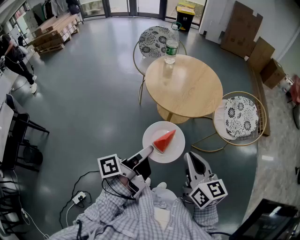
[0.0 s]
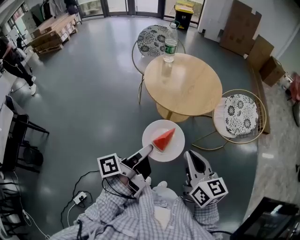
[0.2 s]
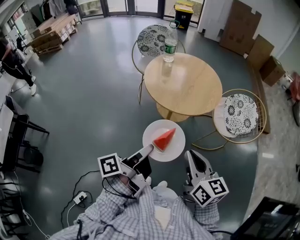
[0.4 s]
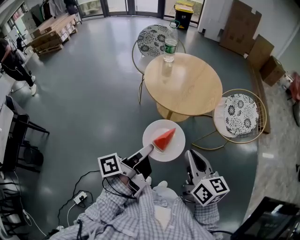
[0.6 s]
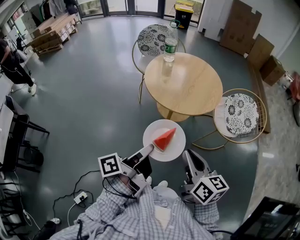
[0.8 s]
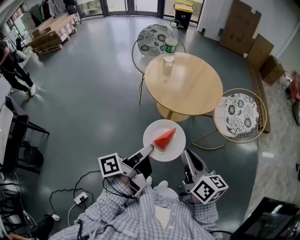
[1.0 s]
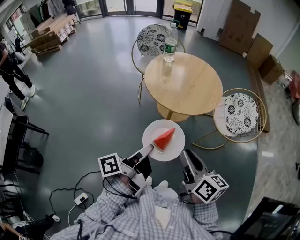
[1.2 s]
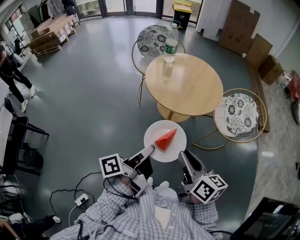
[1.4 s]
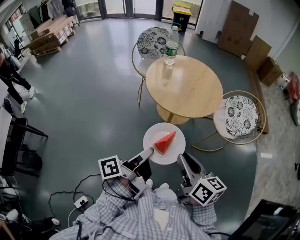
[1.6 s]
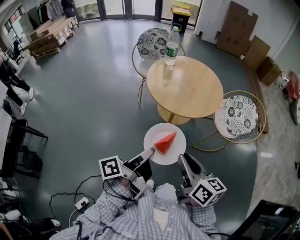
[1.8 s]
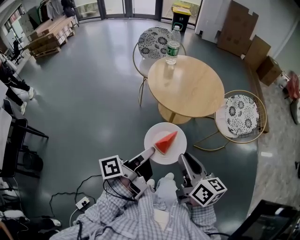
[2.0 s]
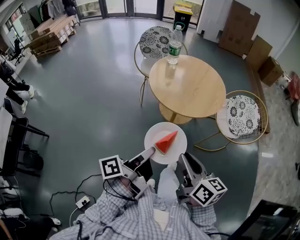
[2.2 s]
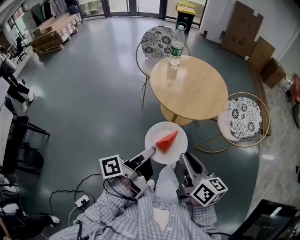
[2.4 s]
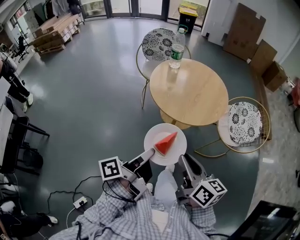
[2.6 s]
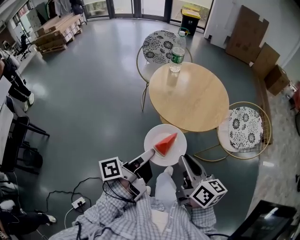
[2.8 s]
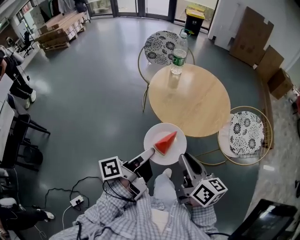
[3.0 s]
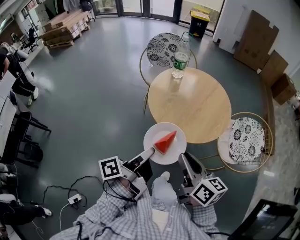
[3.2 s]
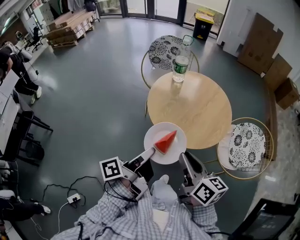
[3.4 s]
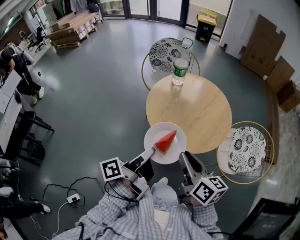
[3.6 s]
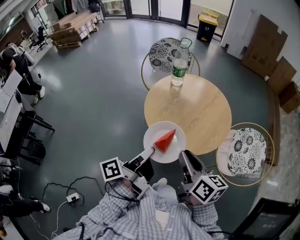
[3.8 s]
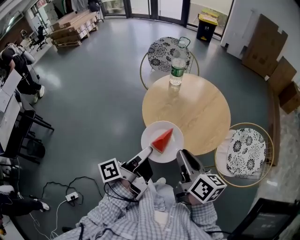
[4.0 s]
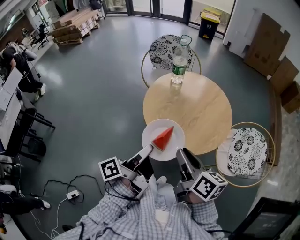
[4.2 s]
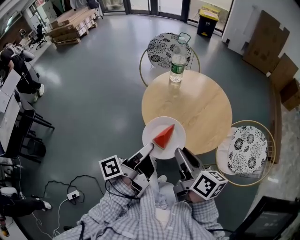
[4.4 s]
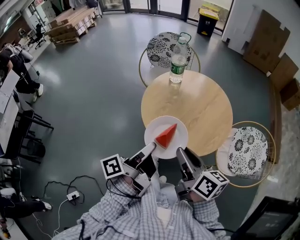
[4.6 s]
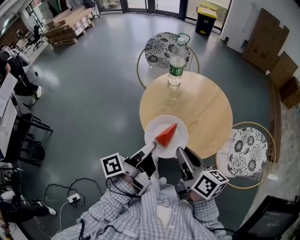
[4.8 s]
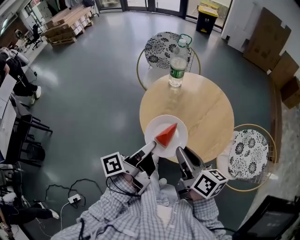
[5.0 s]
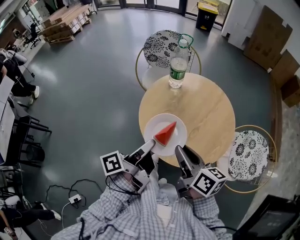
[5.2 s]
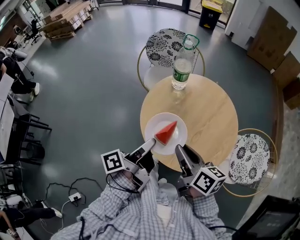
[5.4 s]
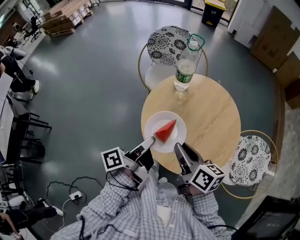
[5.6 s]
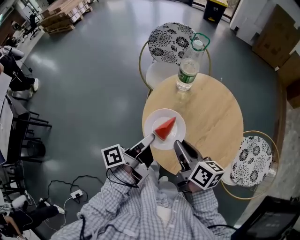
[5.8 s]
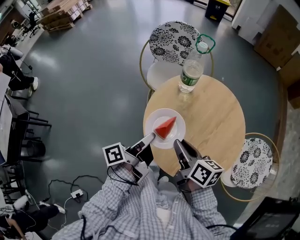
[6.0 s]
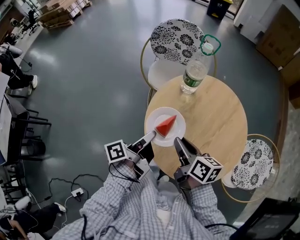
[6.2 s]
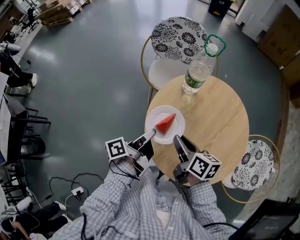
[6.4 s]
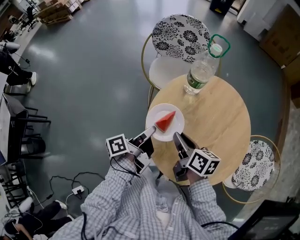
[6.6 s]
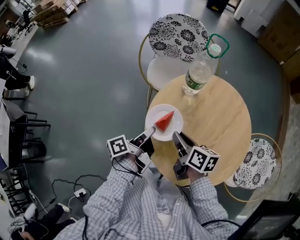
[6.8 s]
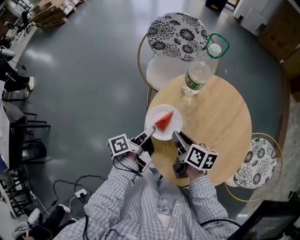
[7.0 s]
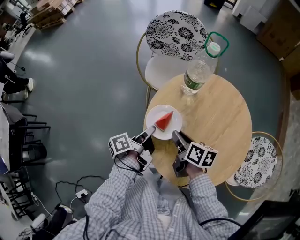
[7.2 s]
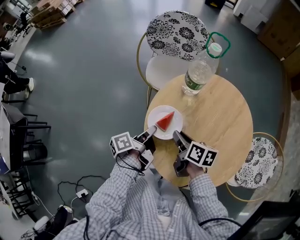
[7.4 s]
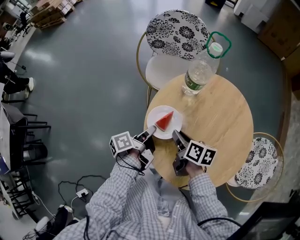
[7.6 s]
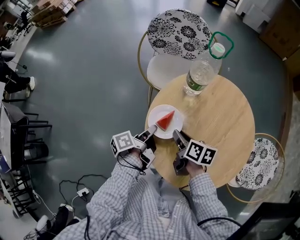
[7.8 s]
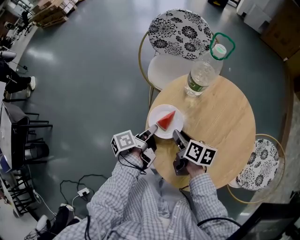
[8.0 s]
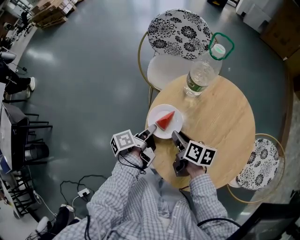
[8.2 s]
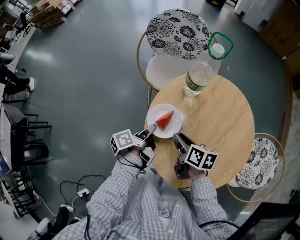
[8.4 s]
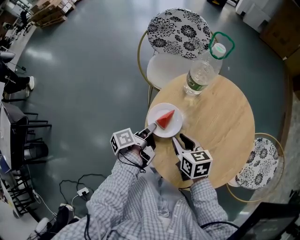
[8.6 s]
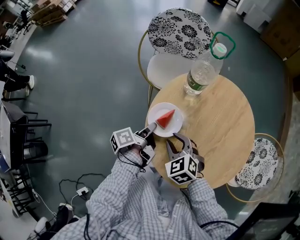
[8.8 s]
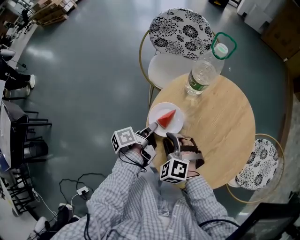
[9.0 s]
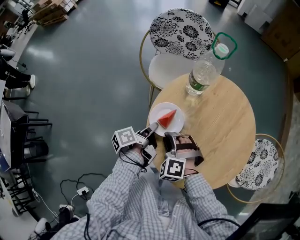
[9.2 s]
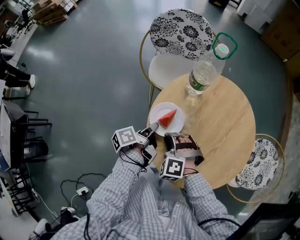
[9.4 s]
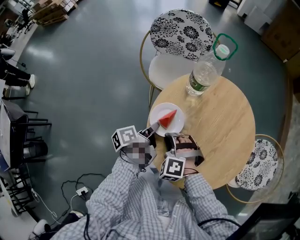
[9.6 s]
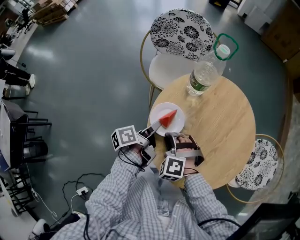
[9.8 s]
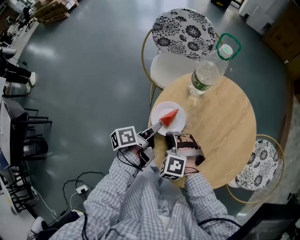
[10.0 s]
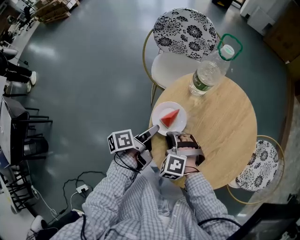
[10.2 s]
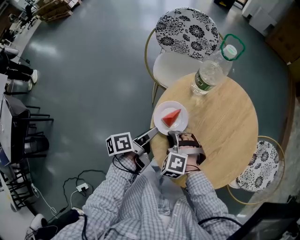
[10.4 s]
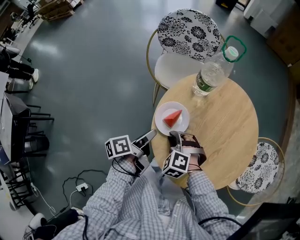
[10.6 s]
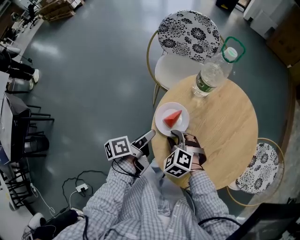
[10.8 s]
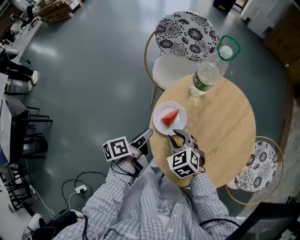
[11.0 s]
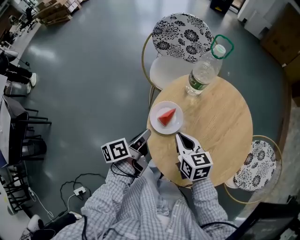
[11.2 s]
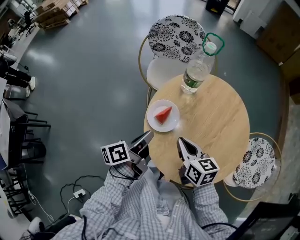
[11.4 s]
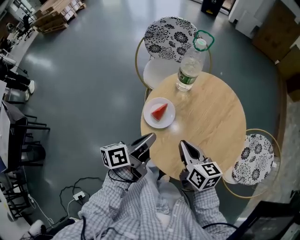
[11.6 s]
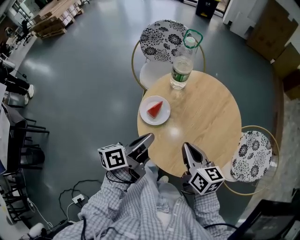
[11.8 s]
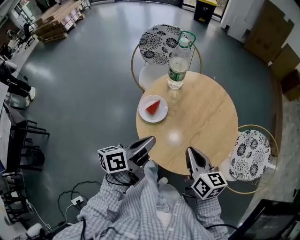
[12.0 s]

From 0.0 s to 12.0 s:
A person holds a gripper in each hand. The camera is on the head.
From 1.6 s to 3.0 s: The right gripper shifts by some 10 cm.
From 3.0 s to 4.4 s: The right gripper moves about 15 cm.
From 4.4 s to 6.0 s: The right gripper ends up some 25 cm from where it was.
From 6.0 s to 7.6 s: The right gripper is displaced downward by approximately 15 cm.
From 7.6 s to 9.0 s: The right gripper ends up some 10 cm from where it was, and rolls counterclockwise, seen from behind, by about 100 degrees.
From 10.4 s to 12.0 s: The right gripper moves some 25 cm, and twists about 90 degrees clockwise, seen from behind.

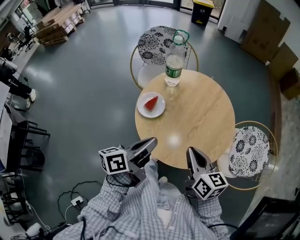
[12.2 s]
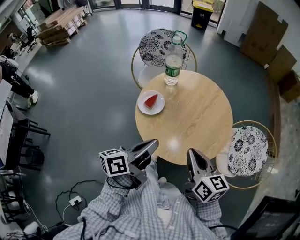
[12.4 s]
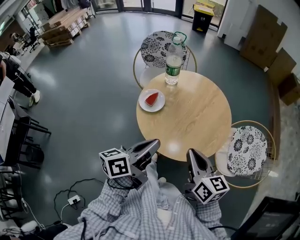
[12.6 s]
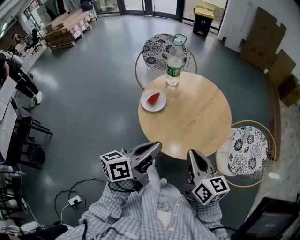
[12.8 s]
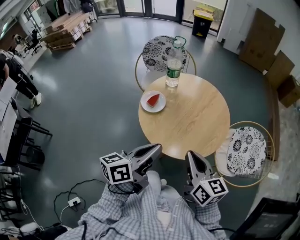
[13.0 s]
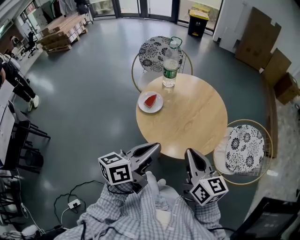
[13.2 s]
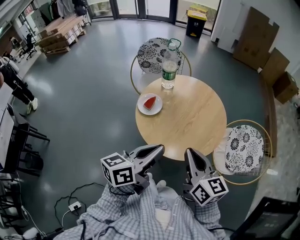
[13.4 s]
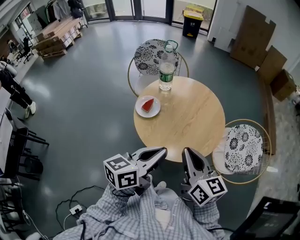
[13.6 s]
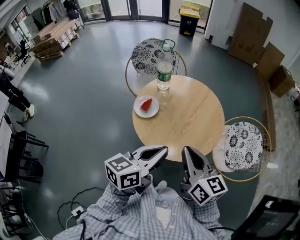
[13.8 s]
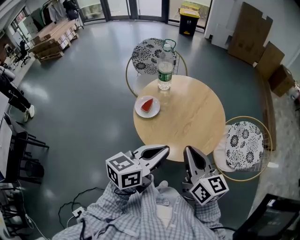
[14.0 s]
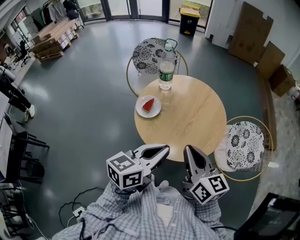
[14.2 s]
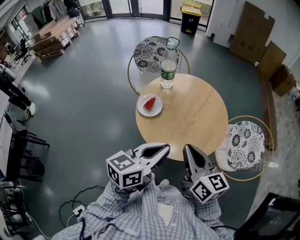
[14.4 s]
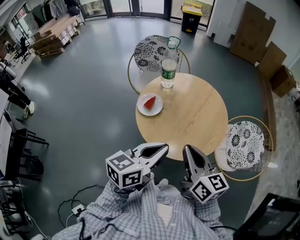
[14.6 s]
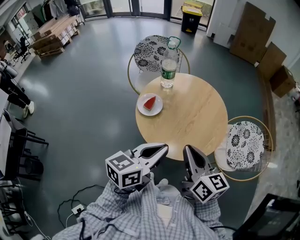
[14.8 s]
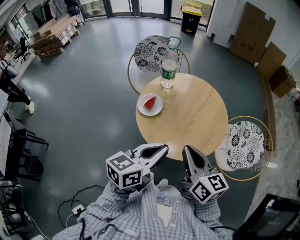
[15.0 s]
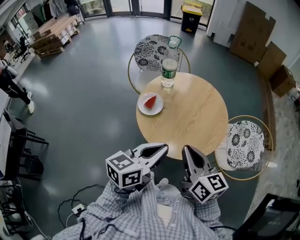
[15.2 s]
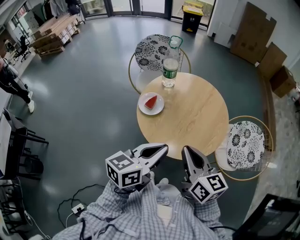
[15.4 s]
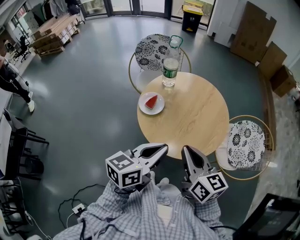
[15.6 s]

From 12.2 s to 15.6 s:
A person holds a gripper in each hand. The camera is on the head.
From 12.2 s to 13.8 s: The right gripper moves upward, roughly 10 cm.

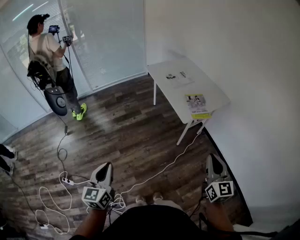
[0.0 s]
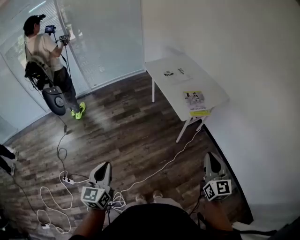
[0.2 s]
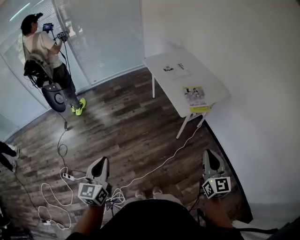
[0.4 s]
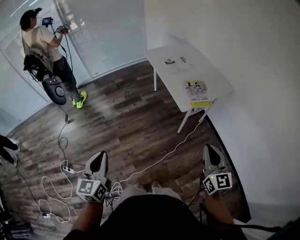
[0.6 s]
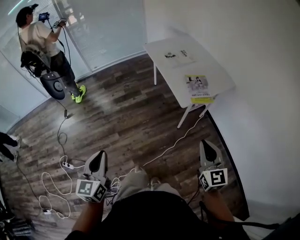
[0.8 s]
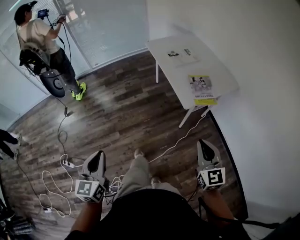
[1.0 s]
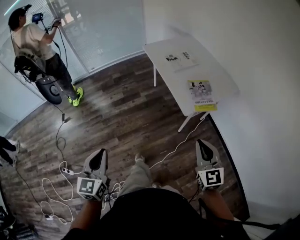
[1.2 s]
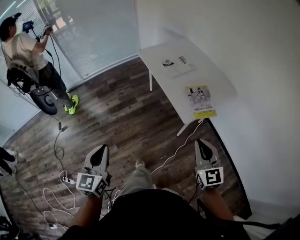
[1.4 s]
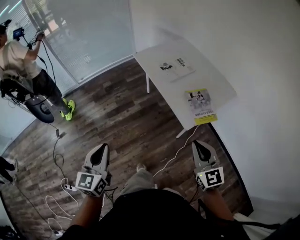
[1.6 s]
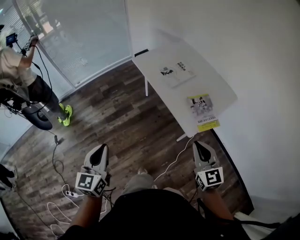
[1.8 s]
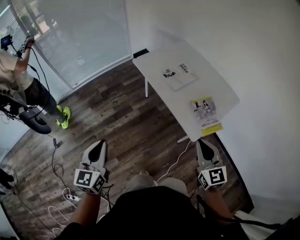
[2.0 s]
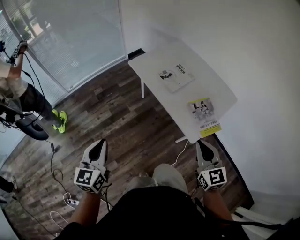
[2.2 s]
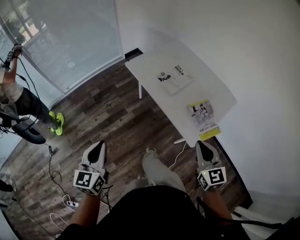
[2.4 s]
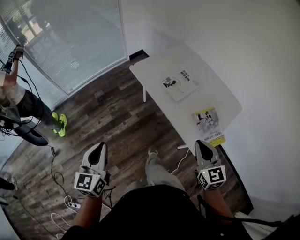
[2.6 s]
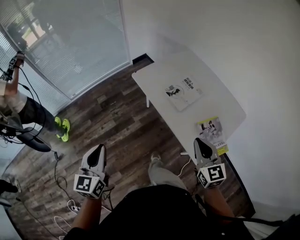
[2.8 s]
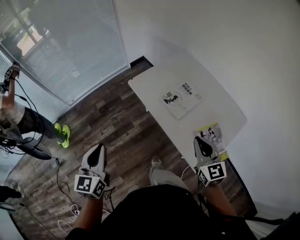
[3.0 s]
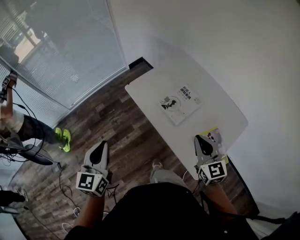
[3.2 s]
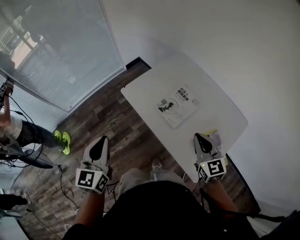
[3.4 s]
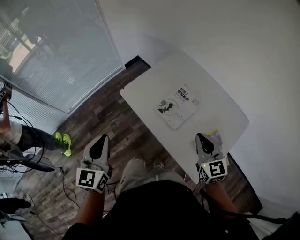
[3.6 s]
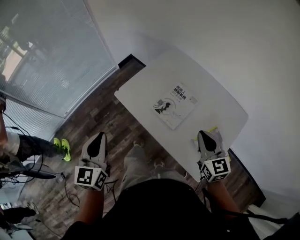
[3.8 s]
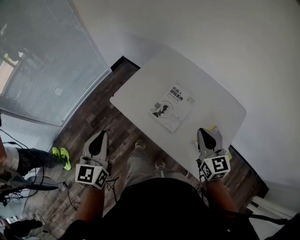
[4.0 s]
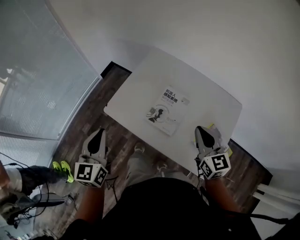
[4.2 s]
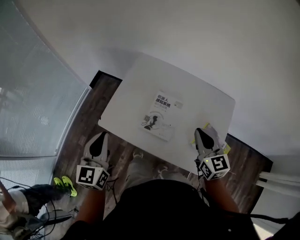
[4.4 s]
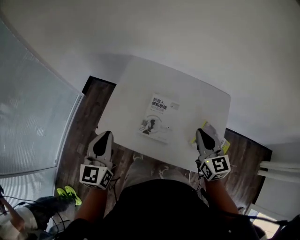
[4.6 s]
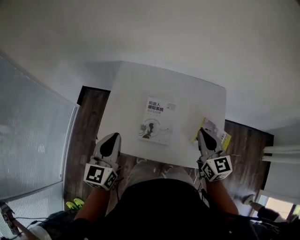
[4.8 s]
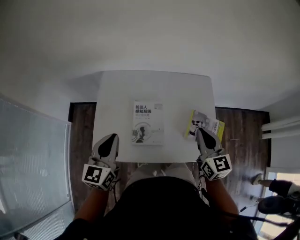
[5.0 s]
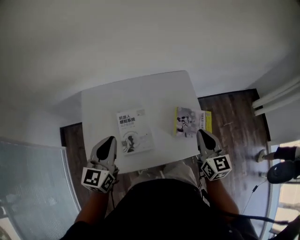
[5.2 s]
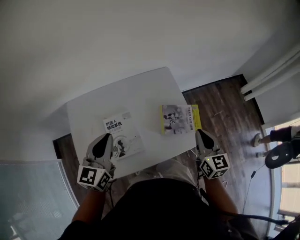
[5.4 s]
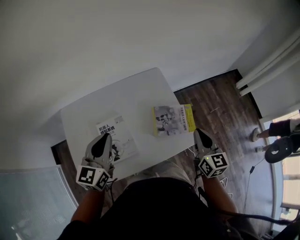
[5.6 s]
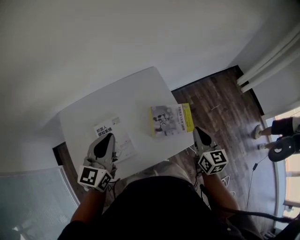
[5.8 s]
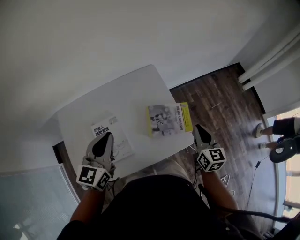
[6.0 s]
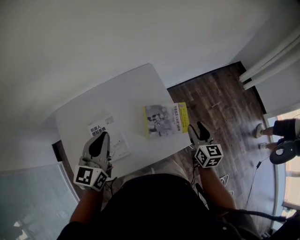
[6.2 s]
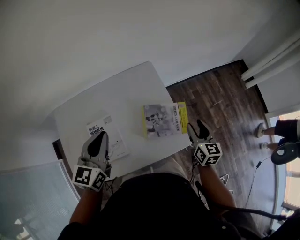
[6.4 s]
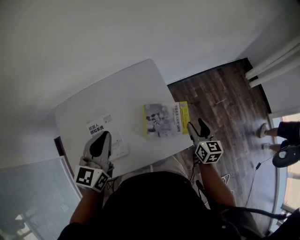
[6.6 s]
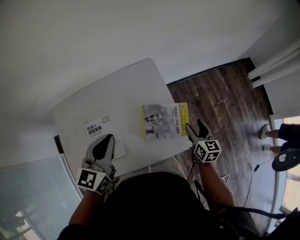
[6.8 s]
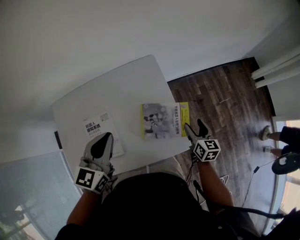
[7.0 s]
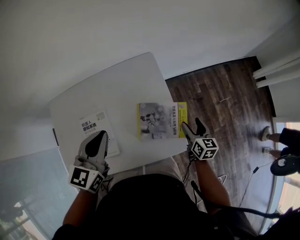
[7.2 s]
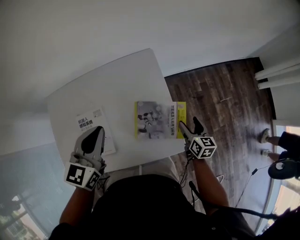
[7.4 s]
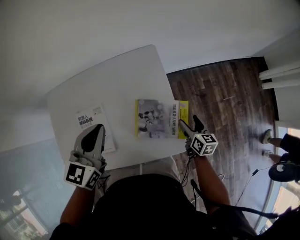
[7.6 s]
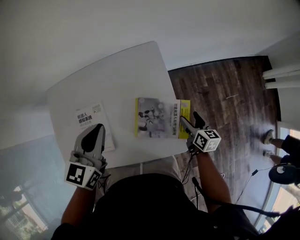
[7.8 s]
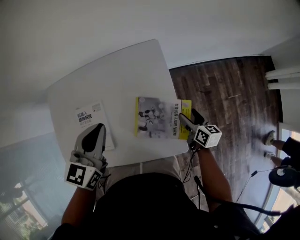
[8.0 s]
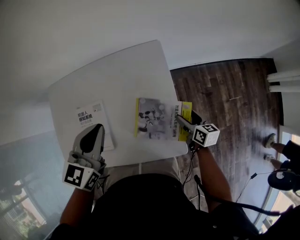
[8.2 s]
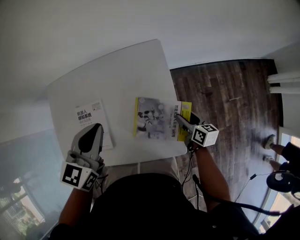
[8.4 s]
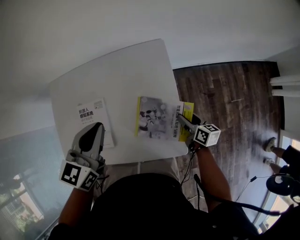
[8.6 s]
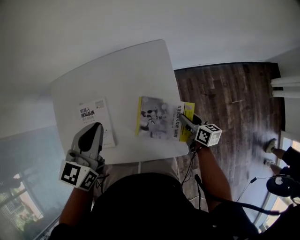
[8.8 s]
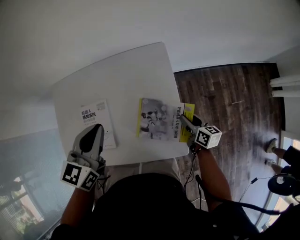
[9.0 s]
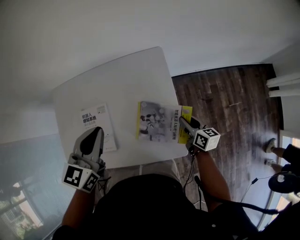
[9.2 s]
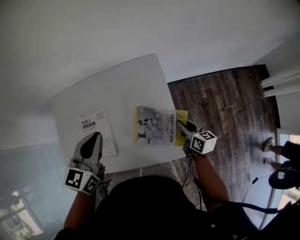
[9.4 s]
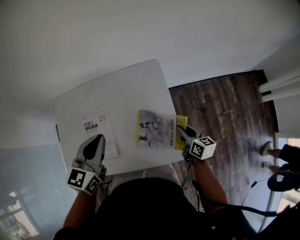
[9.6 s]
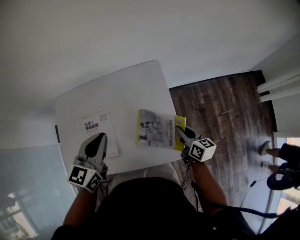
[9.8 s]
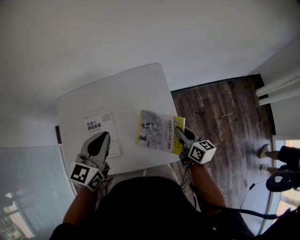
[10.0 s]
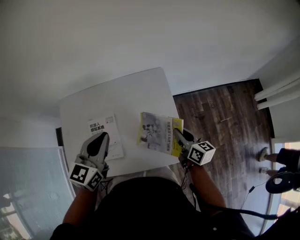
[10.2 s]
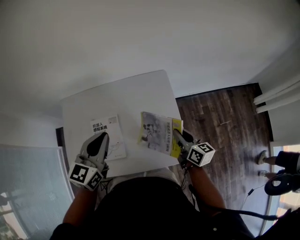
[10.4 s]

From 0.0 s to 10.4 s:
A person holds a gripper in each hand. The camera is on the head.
From 0.0 s to 1.4 s: Both grippers travel together forward, roughly 15 cm.
From 1.4 s to 3.0 s: The two grippers go roughly 35 cm forward.
From 3.0 s to 4.4 s: The left gripper shifts by some 35 cm, and changes its angle by approximately 30 degrees; the right gripper ends up about 15 cm from where it was, and changes its angle by roughly 30 degrees.
From 4.4 s to 6.0 s: The left gripper ends up about 30 cm from where it was, and changes its angle by about 60 degrees, while the right gripper moves roughly 25 cm, and turns by about 60 degrees.
From 6.0 s to 7.4 s: The right gripper goes roughly 20 cm downward and forward, changes its angle by approximately 20 degrees, and opens, while the left gripper travels to the right and forward by some 10 cm.
From 7.4 s to 9.0 s: The right gripper ends up approximately 5 cm from where it was, turns by some 20 degrees, and closes up.
From 9.0 s to 10.4 s: The left gripper travels upward by approximately 10 cm, while the right gripper shifts roughly 20 cm upward.
